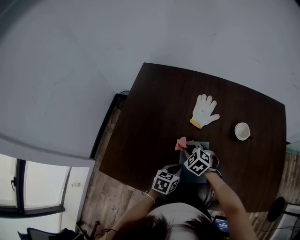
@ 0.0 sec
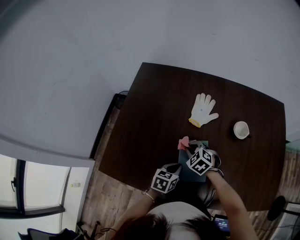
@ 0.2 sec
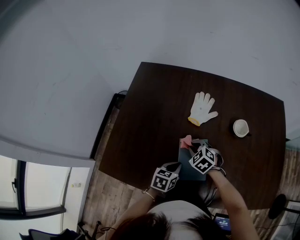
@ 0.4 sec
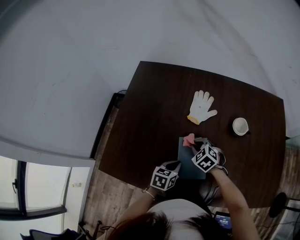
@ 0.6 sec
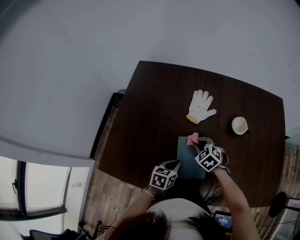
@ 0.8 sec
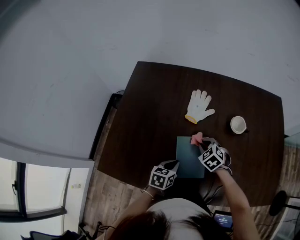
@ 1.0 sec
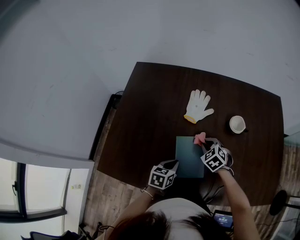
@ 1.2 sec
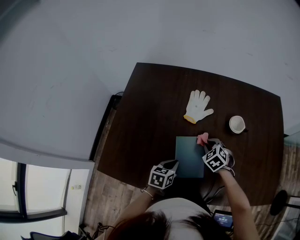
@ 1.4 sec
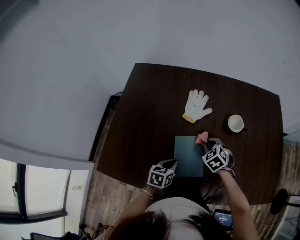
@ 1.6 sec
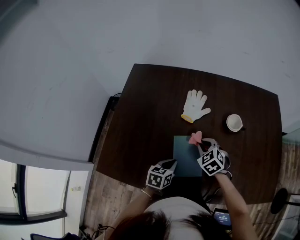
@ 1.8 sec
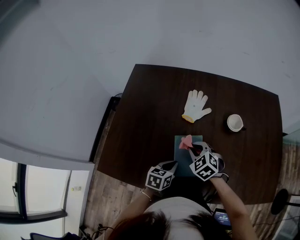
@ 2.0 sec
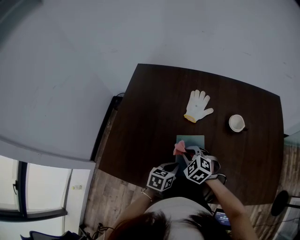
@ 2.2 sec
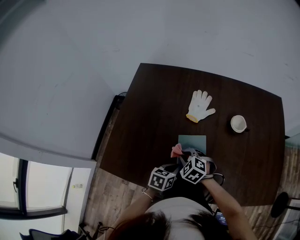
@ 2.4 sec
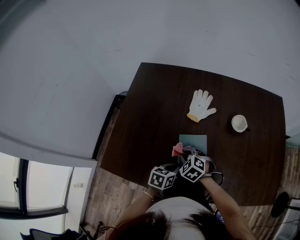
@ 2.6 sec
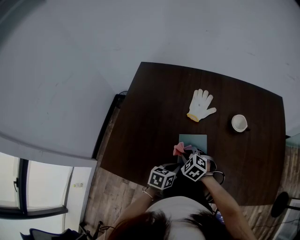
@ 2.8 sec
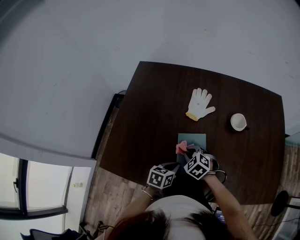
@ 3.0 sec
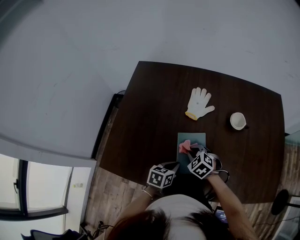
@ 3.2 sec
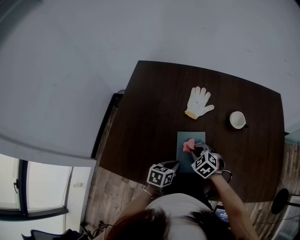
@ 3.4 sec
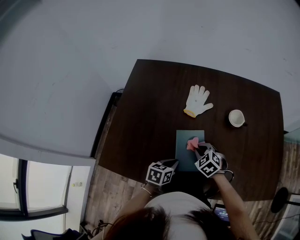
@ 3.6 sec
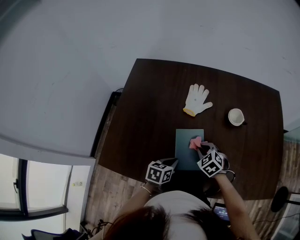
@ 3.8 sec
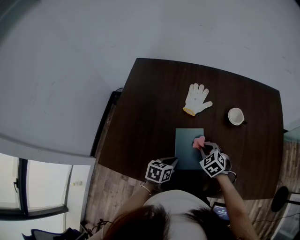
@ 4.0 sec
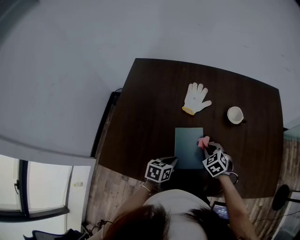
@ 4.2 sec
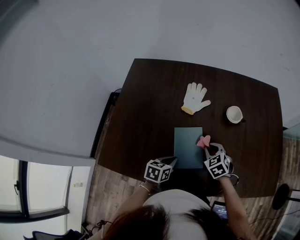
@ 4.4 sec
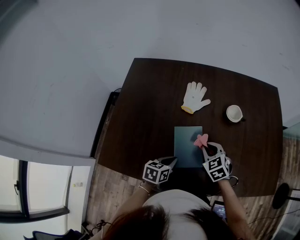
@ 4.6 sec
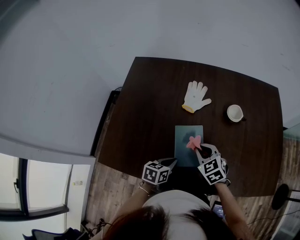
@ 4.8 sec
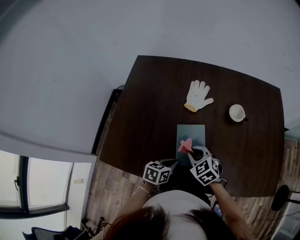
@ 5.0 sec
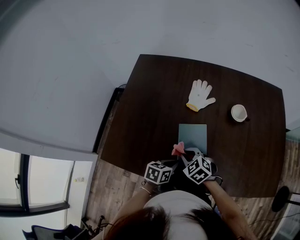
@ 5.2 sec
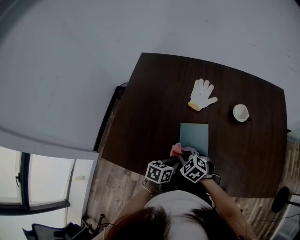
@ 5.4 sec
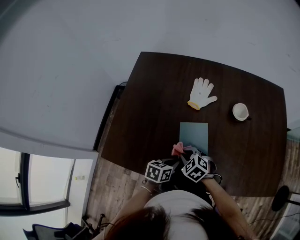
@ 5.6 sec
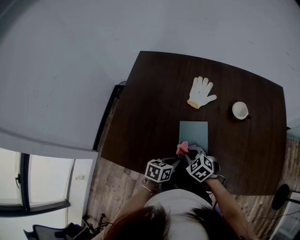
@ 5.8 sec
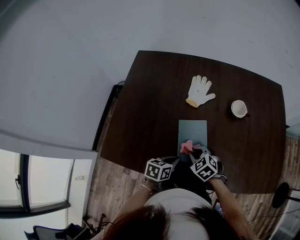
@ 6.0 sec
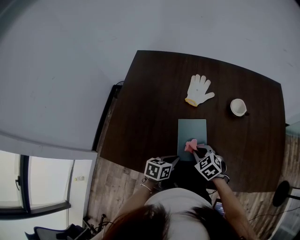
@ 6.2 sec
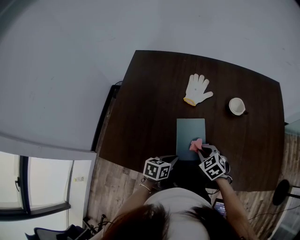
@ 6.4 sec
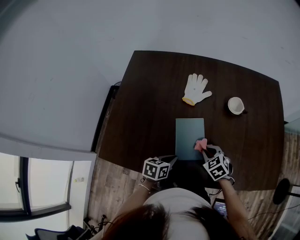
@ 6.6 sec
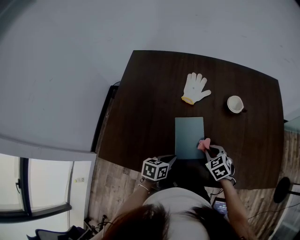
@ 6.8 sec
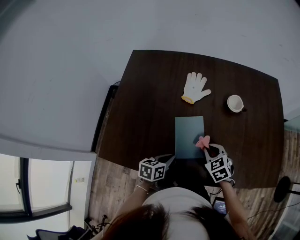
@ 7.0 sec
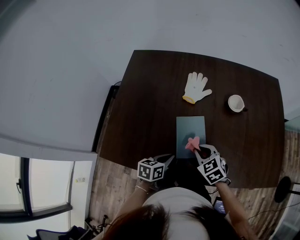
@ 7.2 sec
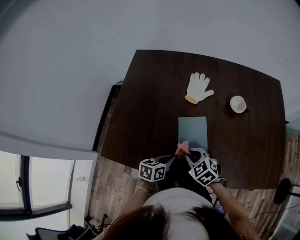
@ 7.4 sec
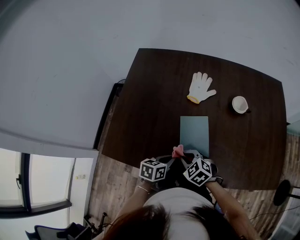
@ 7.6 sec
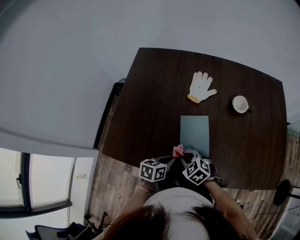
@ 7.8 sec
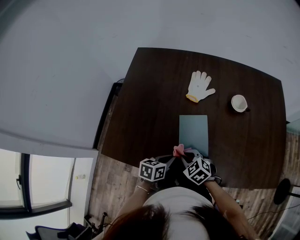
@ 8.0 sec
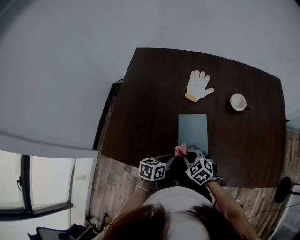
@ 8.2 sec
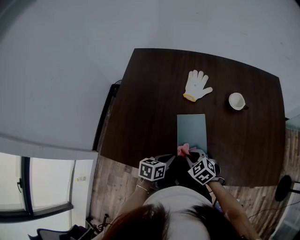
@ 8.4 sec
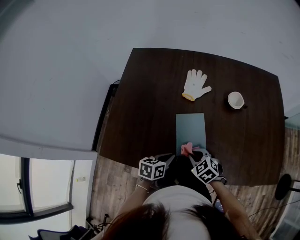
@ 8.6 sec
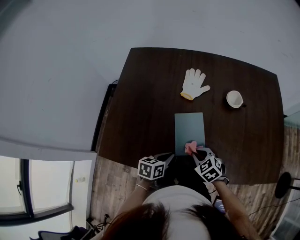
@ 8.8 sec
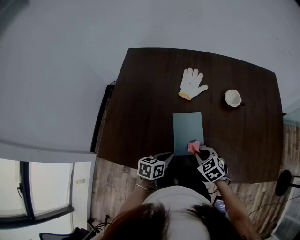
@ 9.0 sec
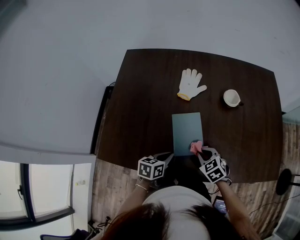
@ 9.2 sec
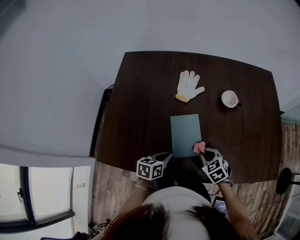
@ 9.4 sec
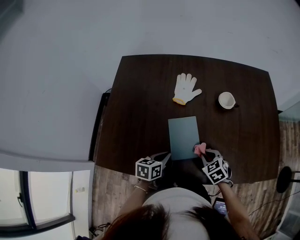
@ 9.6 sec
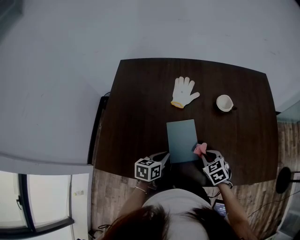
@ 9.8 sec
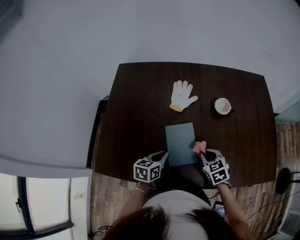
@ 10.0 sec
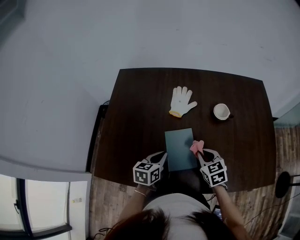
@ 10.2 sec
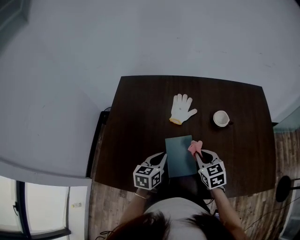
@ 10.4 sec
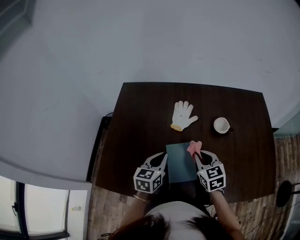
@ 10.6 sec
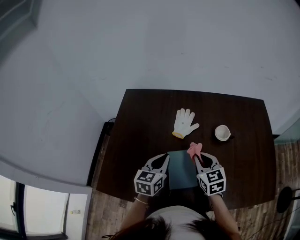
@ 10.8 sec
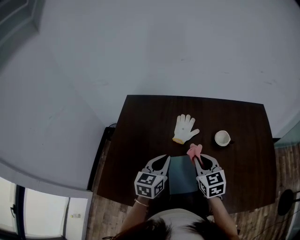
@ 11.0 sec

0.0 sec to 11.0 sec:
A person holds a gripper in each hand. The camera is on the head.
0.0 sec to 1.6 sec: The right gripper travels to the right by approximately 15 cm.
1.6 sec to 3.2 sec: The right gripper shifts about 10 cm to the left and backward.
3.2 sec to 4.8 sec: The right gripper moves upward and to the right, some 10 cm.
4.8 sec to 6.2 sec: The right gripper travels downward by approximately 5 cm, and goes to the left and returns, roughly 10 cm each way.
6.2 sec to 7.8 sec: The right gripper travels to the left and backward by some 10 cm.
7.8 sec to 9.4 sec: The right gripper heads to the right, covering roughly 15 cm, and turns by some 20 degrees.
9.4 sec to 11.0 sec: Both grippers move upward and forward, roughly 25 cm. The left gripper swivels roughly 30 degrees; the right gripper rotates some 30 degrees.

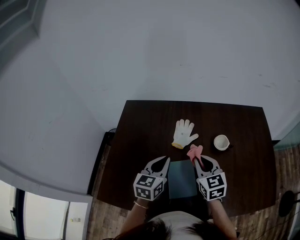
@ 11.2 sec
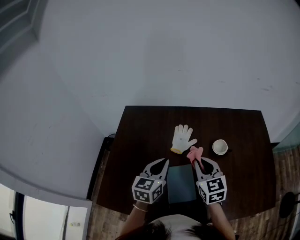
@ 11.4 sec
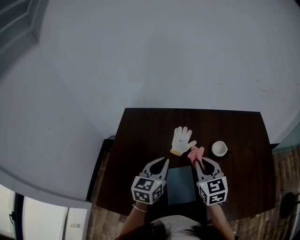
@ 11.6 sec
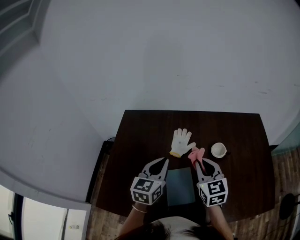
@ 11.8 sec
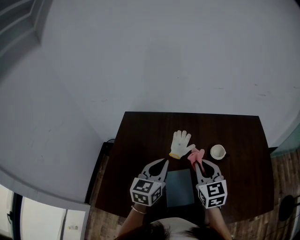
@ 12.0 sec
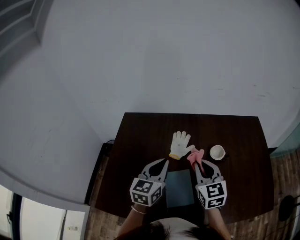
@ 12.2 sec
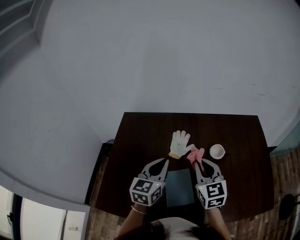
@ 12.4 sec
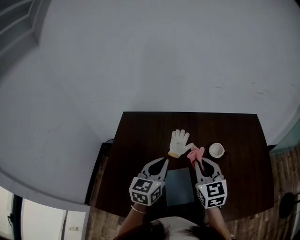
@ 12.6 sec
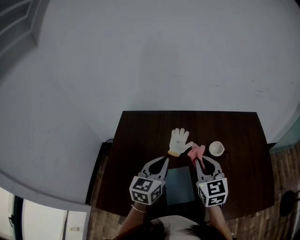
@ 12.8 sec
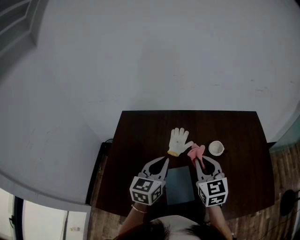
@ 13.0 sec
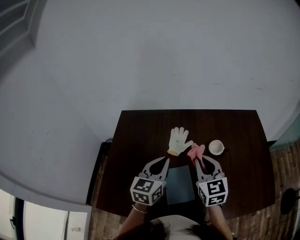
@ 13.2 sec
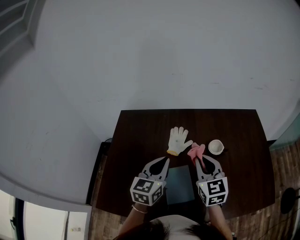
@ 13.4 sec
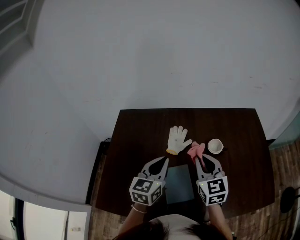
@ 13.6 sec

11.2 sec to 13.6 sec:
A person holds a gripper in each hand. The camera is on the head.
11.2 sec to 12.4 sec: Both grippers move upward, approximately 5 cm.
12.4 sec to 13.6 sec: Both grippers stay put.

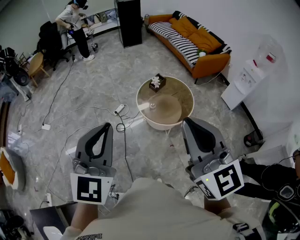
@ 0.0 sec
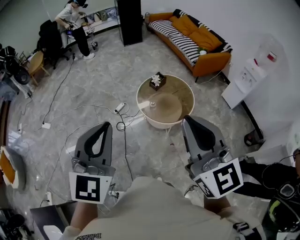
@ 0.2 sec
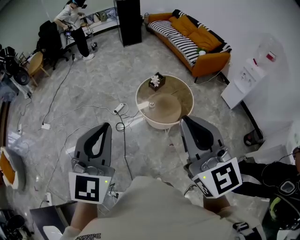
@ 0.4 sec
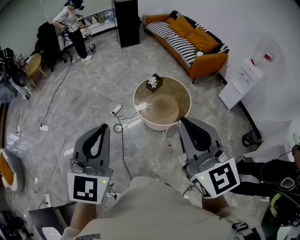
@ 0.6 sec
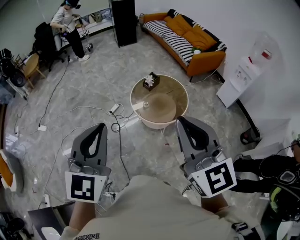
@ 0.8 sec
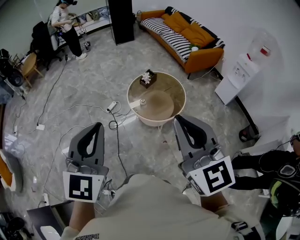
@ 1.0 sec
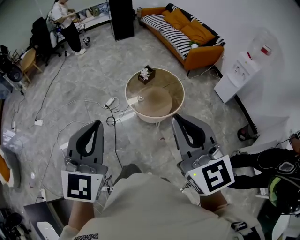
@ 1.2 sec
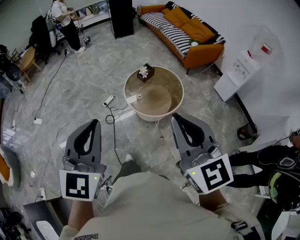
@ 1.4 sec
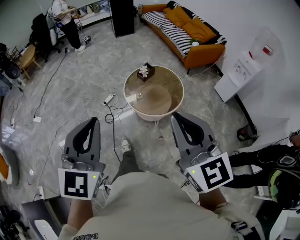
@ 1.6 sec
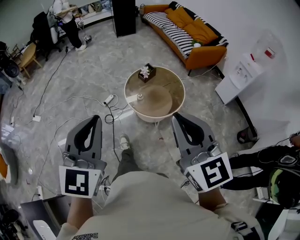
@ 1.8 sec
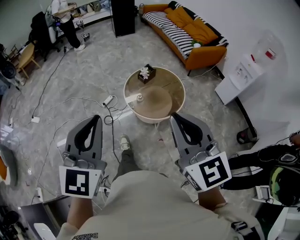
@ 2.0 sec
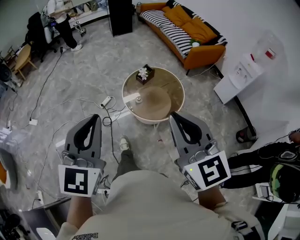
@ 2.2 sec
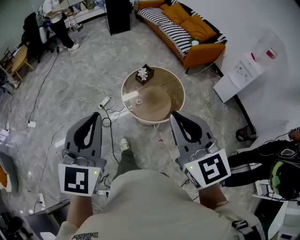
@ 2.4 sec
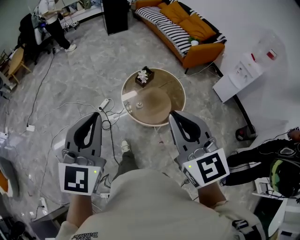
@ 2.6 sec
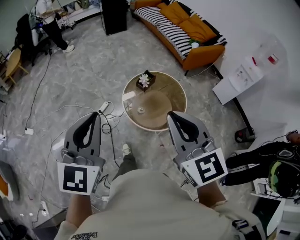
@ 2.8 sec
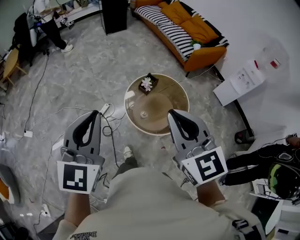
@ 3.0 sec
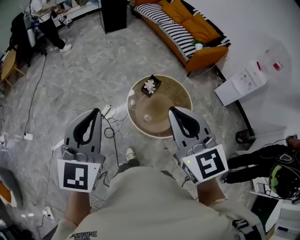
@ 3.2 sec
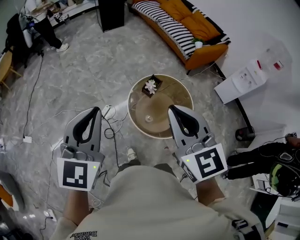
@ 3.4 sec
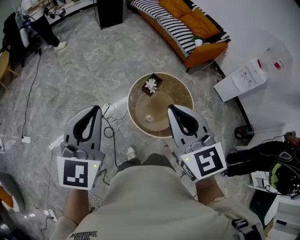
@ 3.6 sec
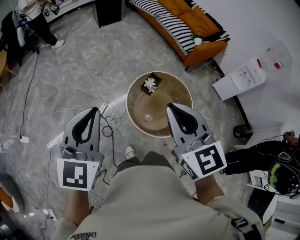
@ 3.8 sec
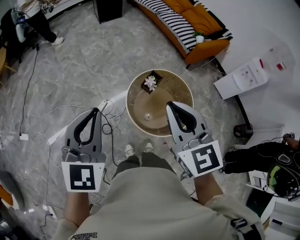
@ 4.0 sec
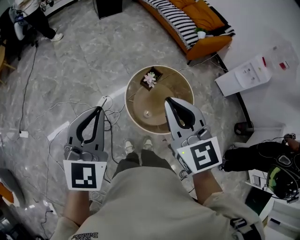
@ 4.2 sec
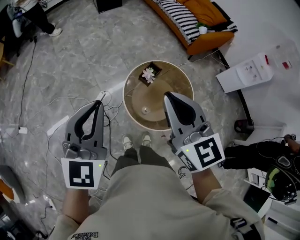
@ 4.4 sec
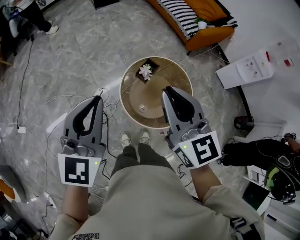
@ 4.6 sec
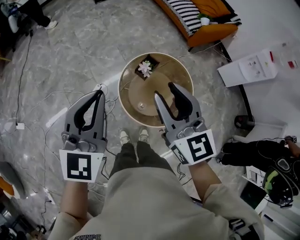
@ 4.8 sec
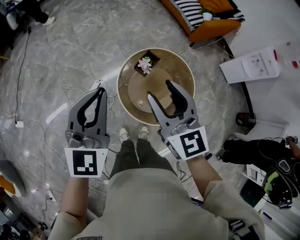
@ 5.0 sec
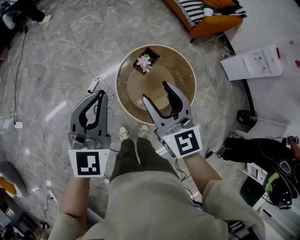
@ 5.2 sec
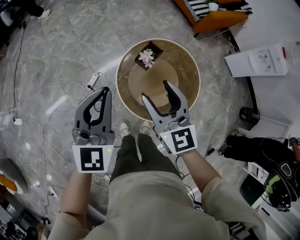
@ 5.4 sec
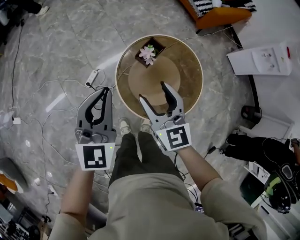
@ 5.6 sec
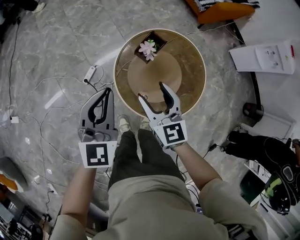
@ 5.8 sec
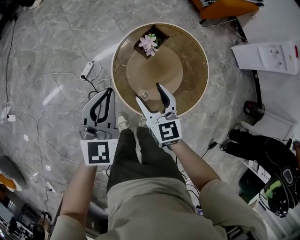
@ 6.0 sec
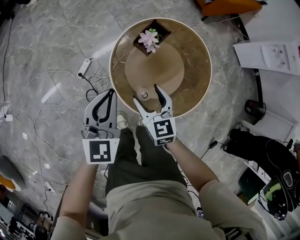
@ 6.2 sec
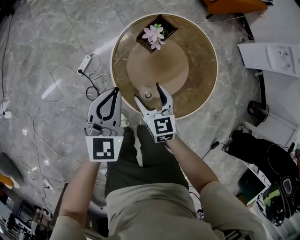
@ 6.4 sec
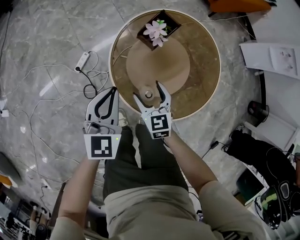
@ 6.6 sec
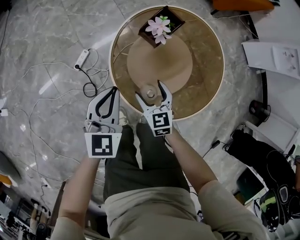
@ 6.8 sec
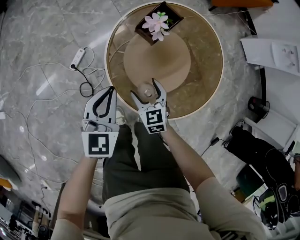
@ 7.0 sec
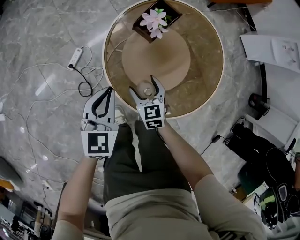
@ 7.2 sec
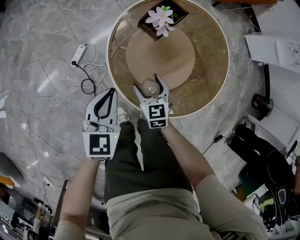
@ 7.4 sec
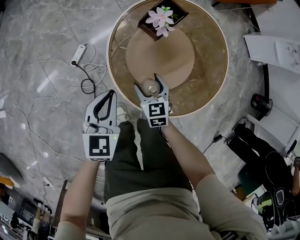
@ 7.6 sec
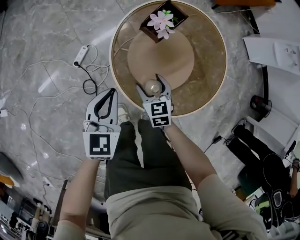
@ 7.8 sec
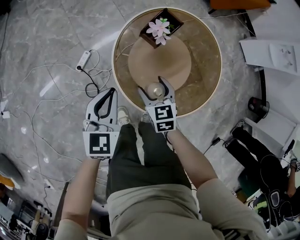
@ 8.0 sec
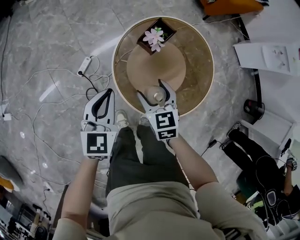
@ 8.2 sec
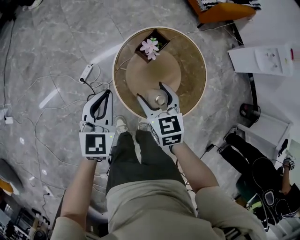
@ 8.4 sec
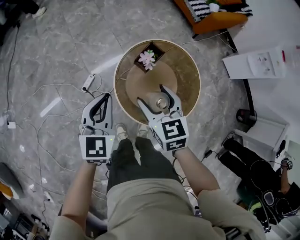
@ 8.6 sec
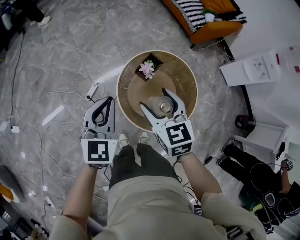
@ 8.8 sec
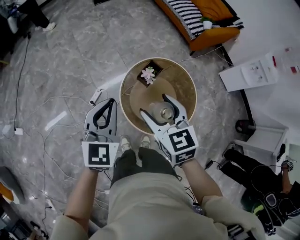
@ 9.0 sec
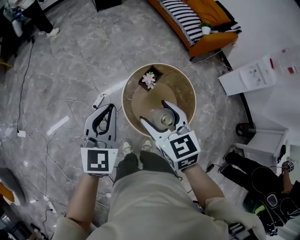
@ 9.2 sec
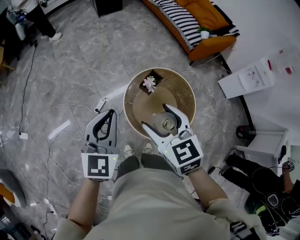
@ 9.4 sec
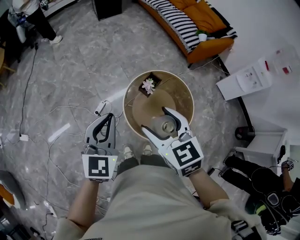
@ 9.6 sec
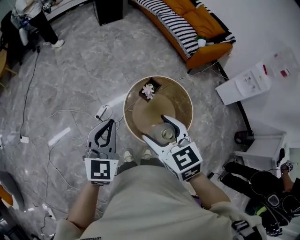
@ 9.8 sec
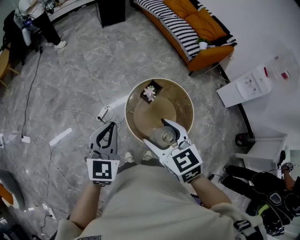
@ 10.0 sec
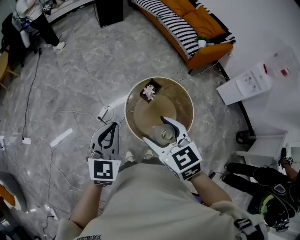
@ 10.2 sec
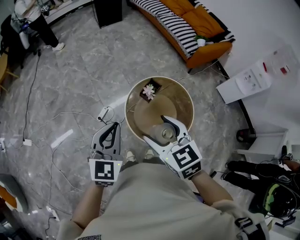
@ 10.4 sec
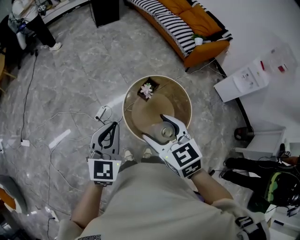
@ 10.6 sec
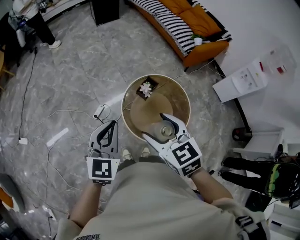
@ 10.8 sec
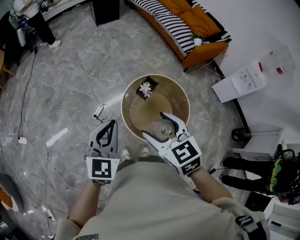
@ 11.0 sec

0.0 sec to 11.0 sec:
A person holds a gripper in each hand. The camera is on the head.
0.0 sec to 1.6 sec: The right gripper goes some 10 cm to the right and downward; the left gripper heads to the right, covering some 5 cm.
1.6 sec to 3.2 sec: Both grippers travel together forward, about 35 cm.
3.2 sec to 4.8 sec: The two grippers go about 20 cm forward and downward. The right gripper opens up.
4.8 sec to 6.2 sec: The grippers both shift downward by some 40 cm. The right gripper swivels roughly 20 degrees, and opens its fingers.
6.2 sec to 7.8 sec: The grippers both shift downward by about 15 cm.
7.8 sec to 9.4 sec: The grippers both shift upward by roughly 50 cm.
9.4 sec to 11.0 sec: The right gripper ends up about 5 cm from where it was.
